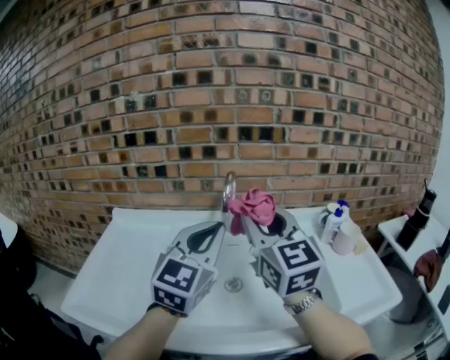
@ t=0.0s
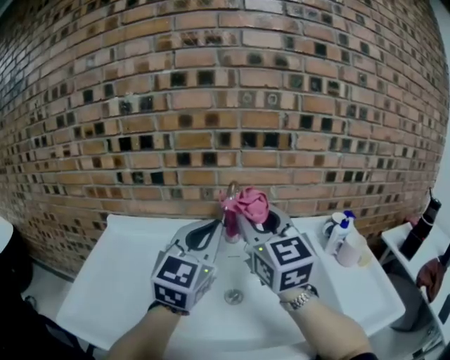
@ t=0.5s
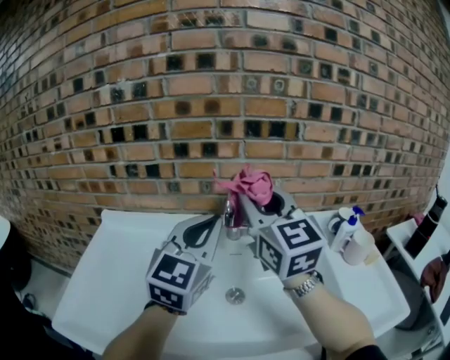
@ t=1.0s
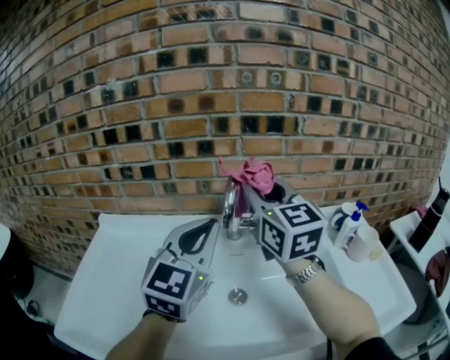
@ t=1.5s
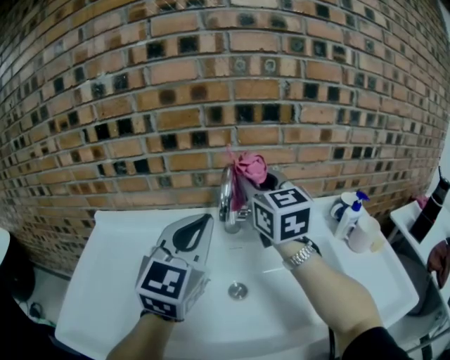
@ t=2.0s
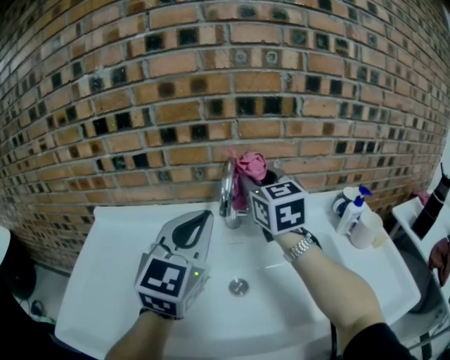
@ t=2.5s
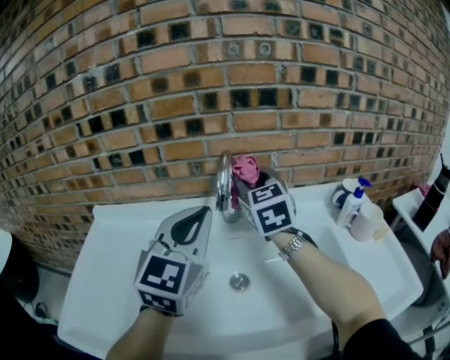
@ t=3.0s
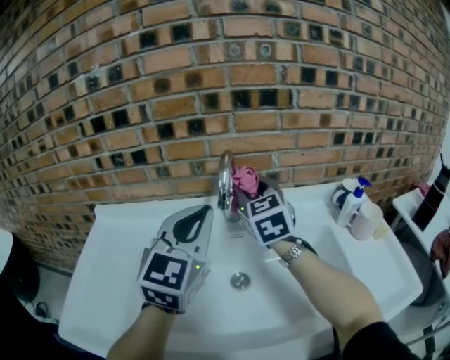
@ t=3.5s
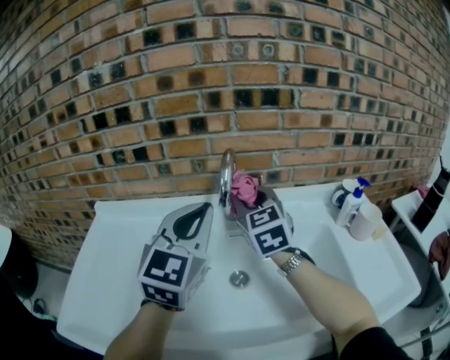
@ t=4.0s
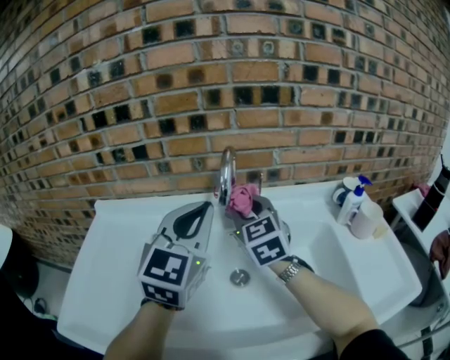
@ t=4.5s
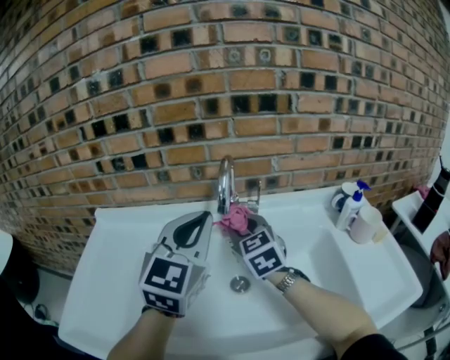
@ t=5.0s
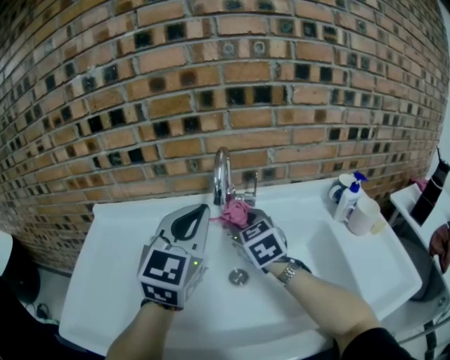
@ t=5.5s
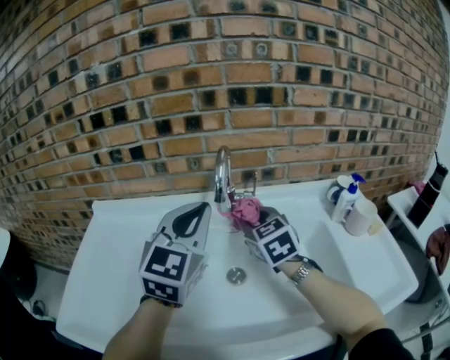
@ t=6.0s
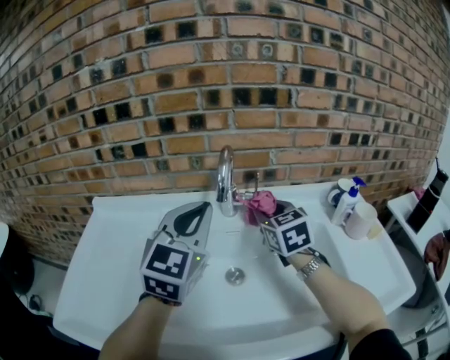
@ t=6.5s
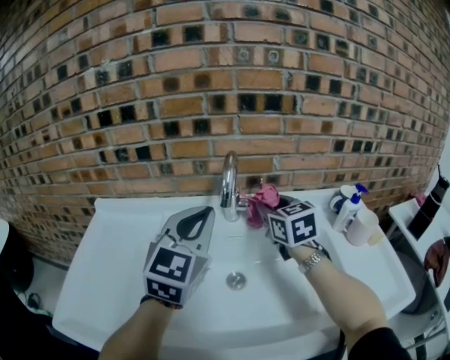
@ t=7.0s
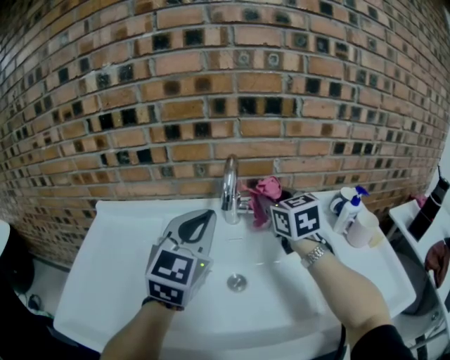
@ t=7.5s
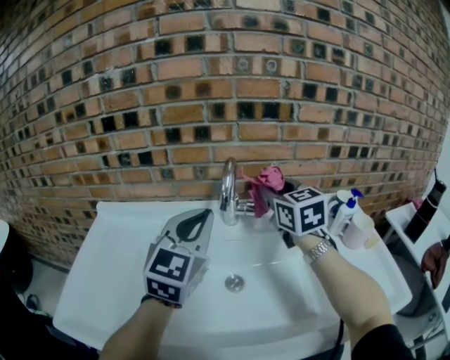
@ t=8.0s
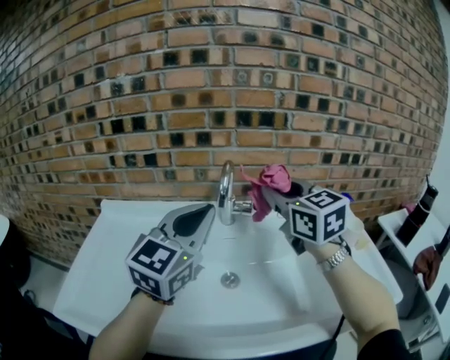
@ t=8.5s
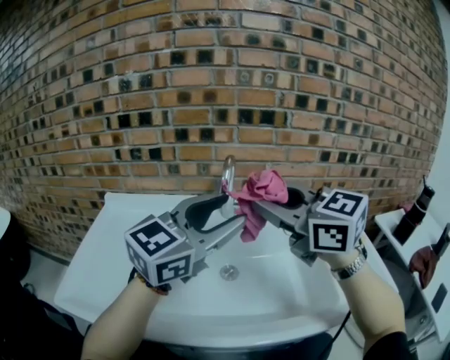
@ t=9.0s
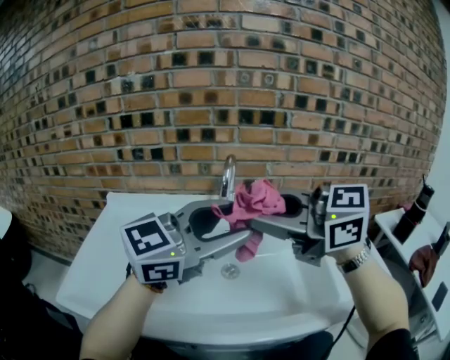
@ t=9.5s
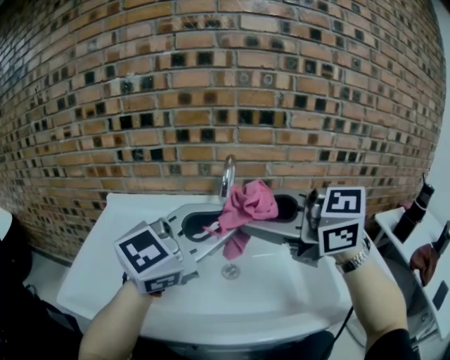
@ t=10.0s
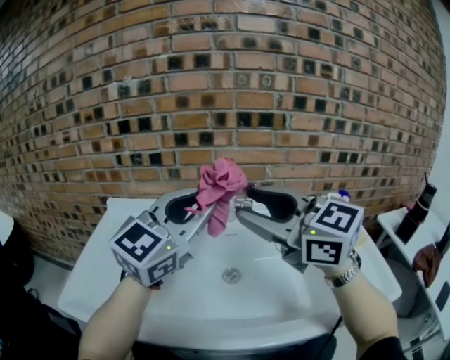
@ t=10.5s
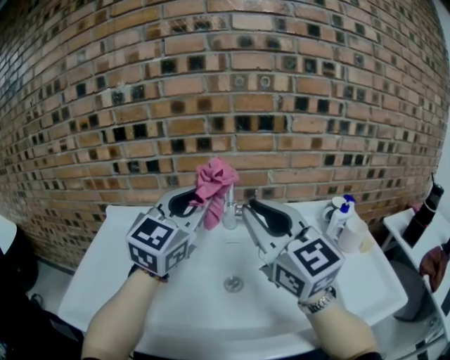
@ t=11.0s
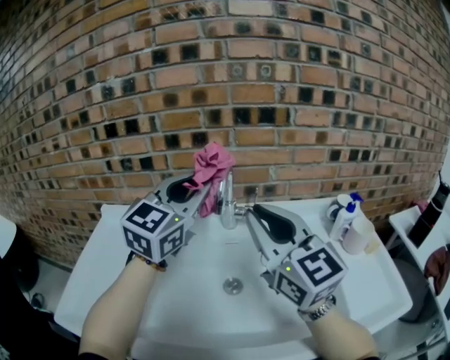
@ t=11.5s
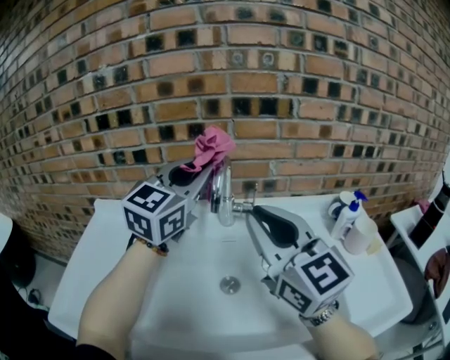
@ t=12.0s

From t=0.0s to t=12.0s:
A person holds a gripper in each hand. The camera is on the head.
From t=0.0s to t=2.0s: The right gripper shifts about 20 cm forward. Meanwhile the left gripper goes some 10 cm forward.
From t=2.0s to t=4.0s: The right gripper moves downward, about 10 cm.
From t=4.0s to t=6.0s: The right gripper moves downward, approximately 5 cm.
From t=6.0s to t=8.0s: The right gripper heads upward and to the right, covering about 15 cm.
From t=8.0s to t=10.0s: The left gripper ends up some 15 cm from where it was, swivels approximately 30 degrees, and opens and closes again, while the right gripper changes place by some 30 cm, and turns by approximately 50 degrees.
From t=10.0s to t=12.0s: The right gripper shifts by some 10 cm, changes its angle by roughly 40 degrees, and closes its fingers. The left gripper shifts by about 20 cm, and changes its angle by some 20 degrees.

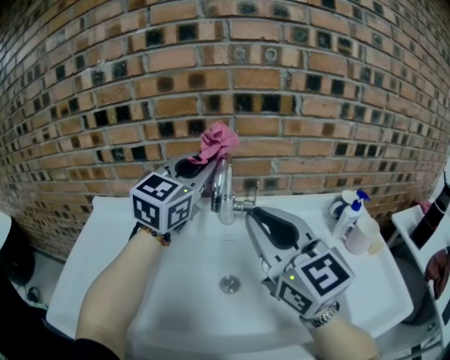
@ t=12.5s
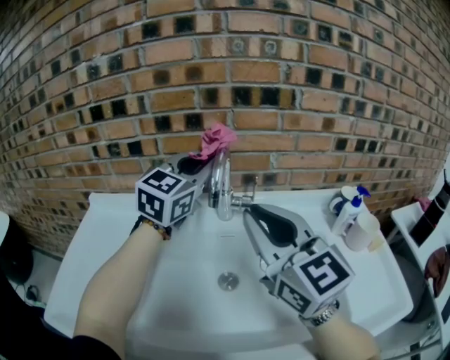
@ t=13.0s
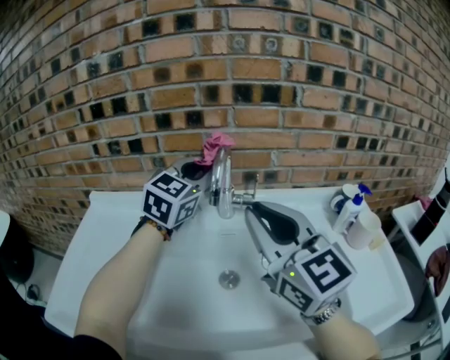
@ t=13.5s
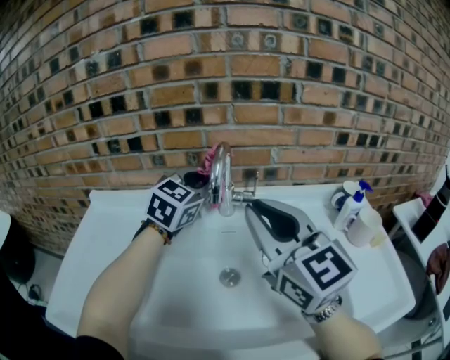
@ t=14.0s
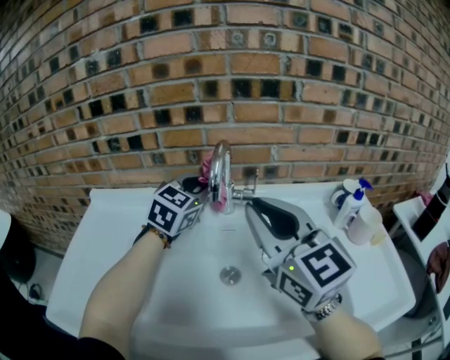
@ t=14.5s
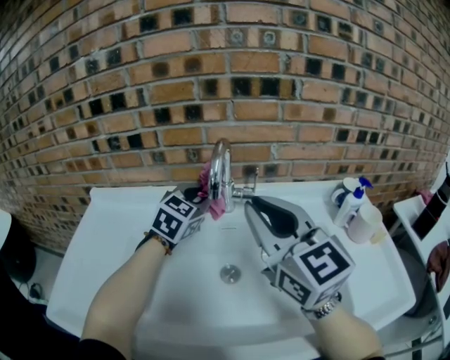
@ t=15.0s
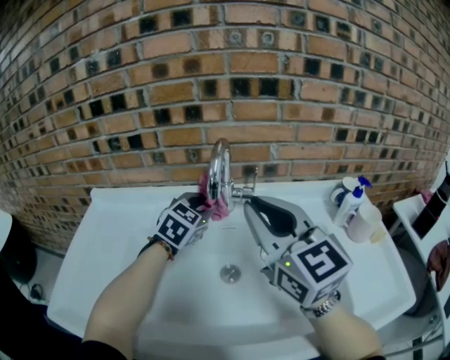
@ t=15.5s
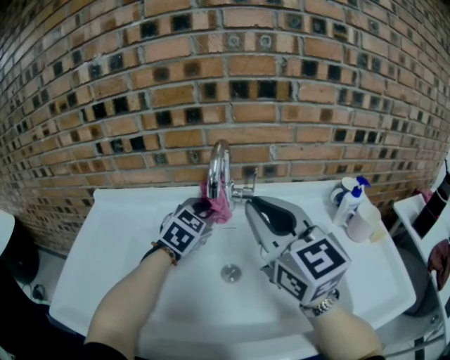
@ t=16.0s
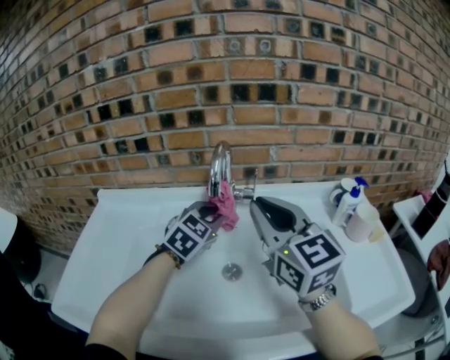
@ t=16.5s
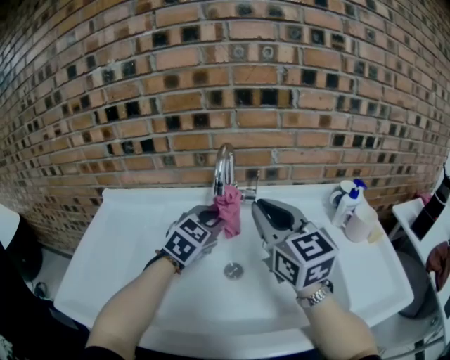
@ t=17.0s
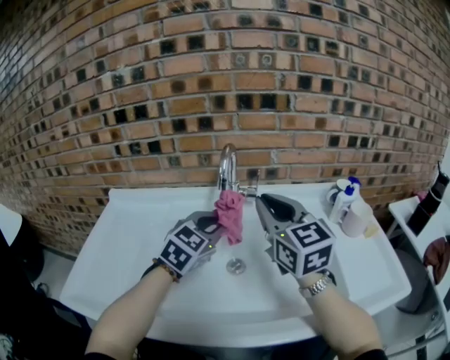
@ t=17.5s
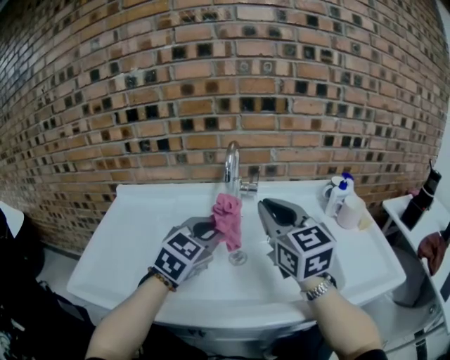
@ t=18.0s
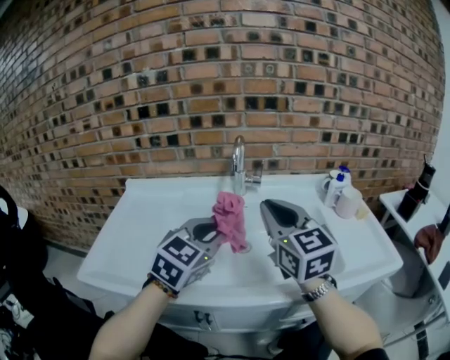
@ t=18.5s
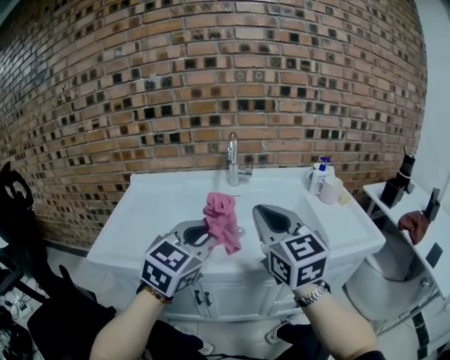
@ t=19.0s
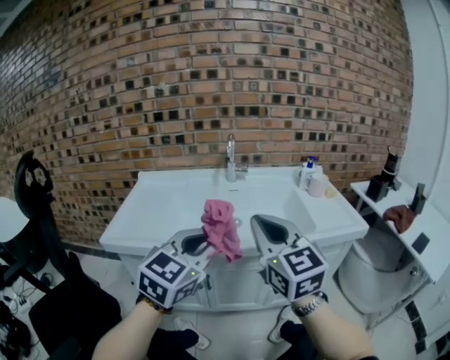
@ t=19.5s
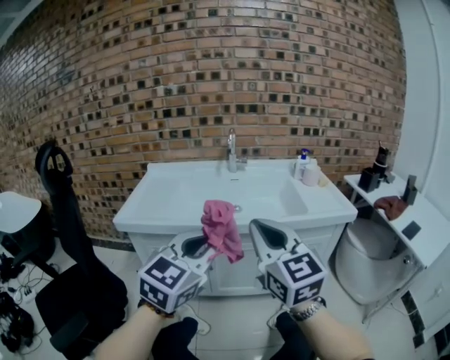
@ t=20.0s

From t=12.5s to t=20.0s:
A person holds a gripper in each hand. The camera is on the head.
From t=12.5s to t=14.5s: The left gripper goes some 10 cm downward.
From t=14.5s to t=16.5s: The left gripper travels downward and backward by about 10 cm.
From t=16.5s to t=18.0s: The right gripper heads backward, covering about 5 cm. The left gripper shifts some 15 cm backward.
From t=18.0s to t=20.0s: The pair of grippers is taken backward, approximately 40 cm.

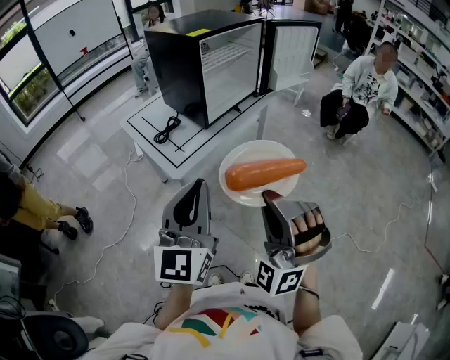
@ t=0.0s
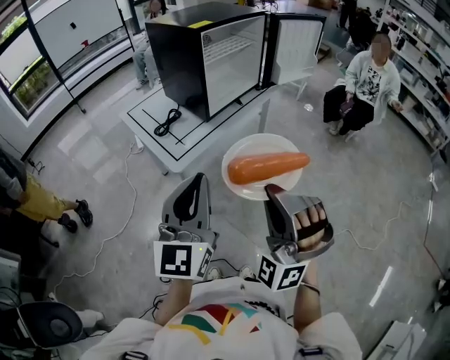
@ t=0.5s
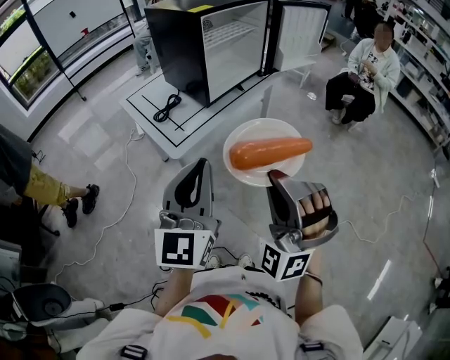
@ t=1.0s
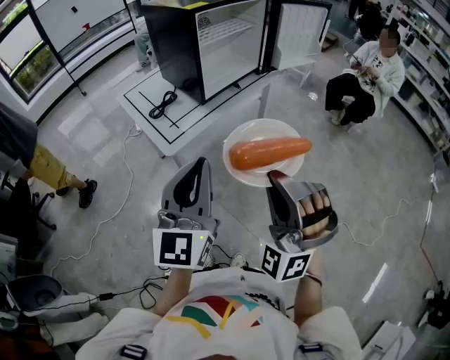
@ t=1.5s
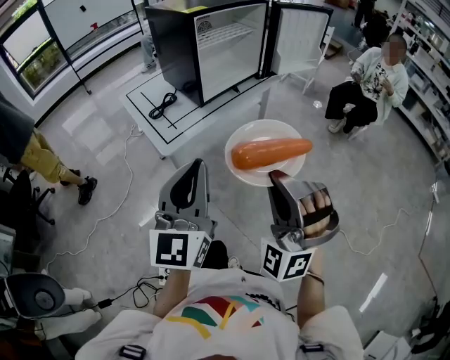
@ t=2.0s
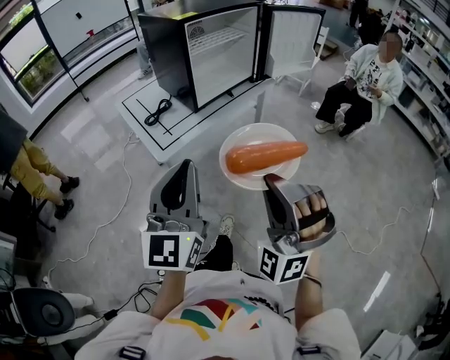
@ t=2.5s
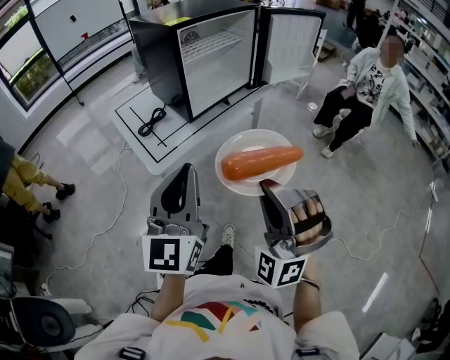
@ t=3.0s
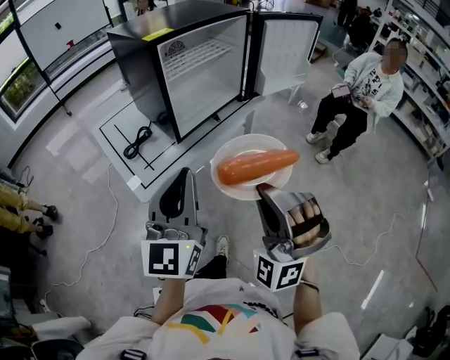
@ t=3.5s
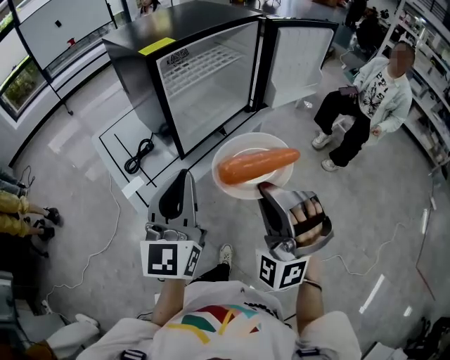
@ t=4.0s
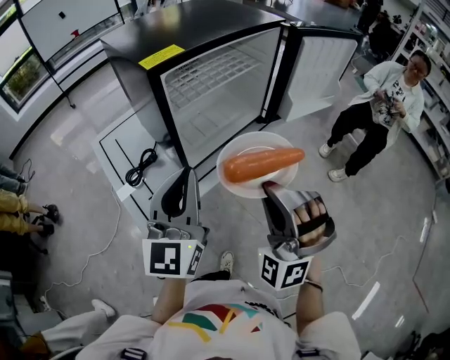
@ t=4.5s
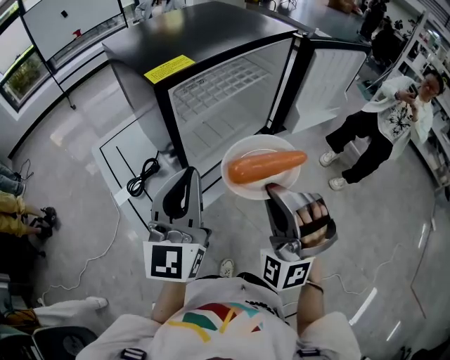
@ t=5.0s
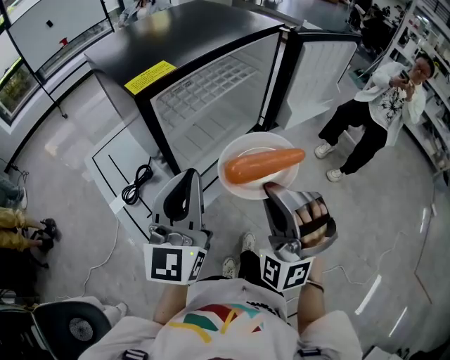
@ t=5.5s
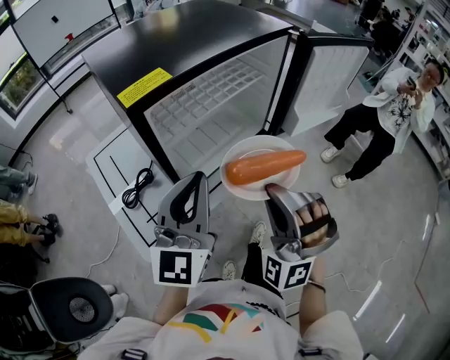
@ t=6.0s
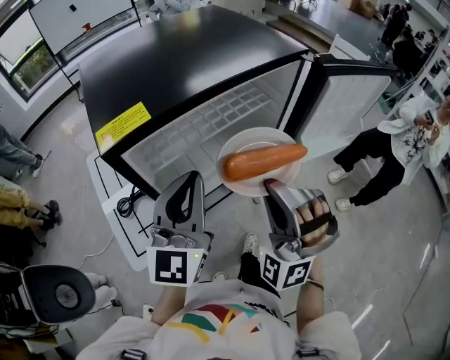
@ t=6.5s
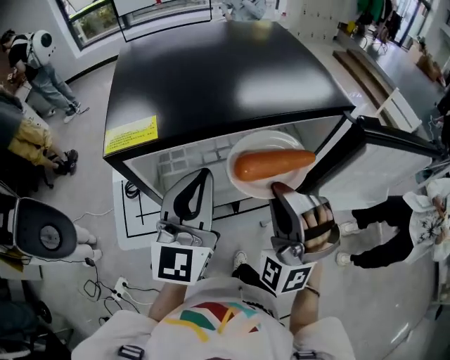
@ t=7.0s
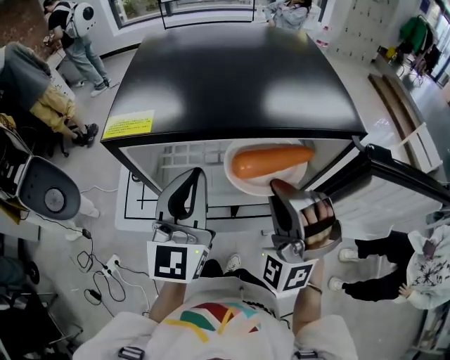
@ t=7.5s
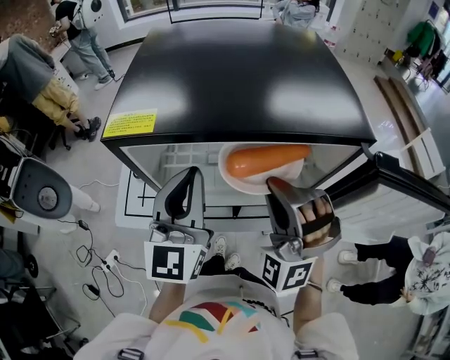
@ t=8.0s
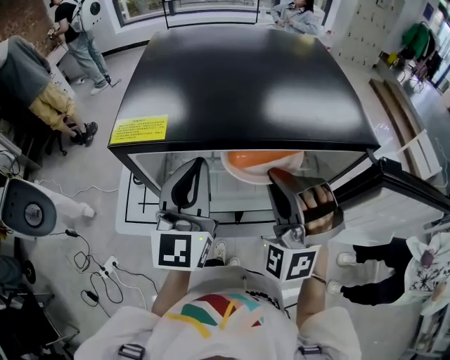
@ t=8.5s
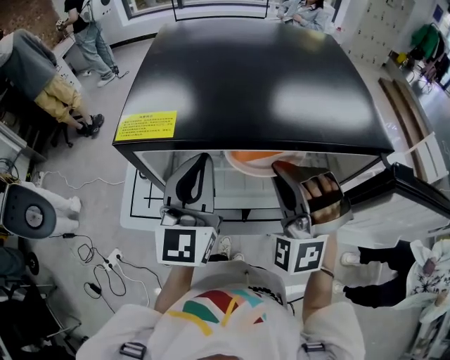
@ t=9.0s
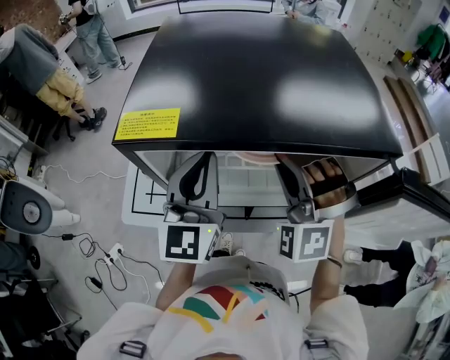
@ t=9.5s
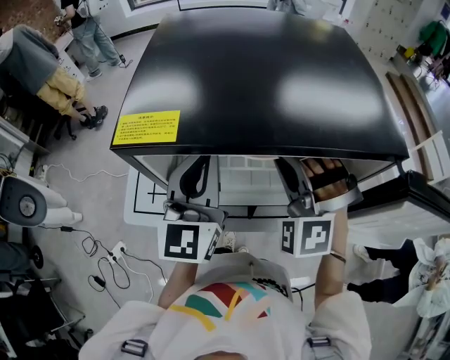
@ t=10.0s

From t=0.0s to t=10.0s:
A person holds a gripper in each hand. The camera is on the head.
From t=0.0s to t=2.0s: The grippers both shift to the right by roughly 5 cm.
From t=2.0s to t=4.0s: Both grippers travel together forward, some 25 cm.
From t=4.0s to t=6.0s: The grippers both shift forward by some 20 cm.
From t=6.0s to t=8.0s: The right gripper ends up about 20 cm from where it was, and rotates roughly 40 degrees, while the left gripper changes place by about 15 cm, and turns by roughly 40 degrees.
From t=8.0s to t=10.0s: The grippers both shift forward by about 5 cm.
